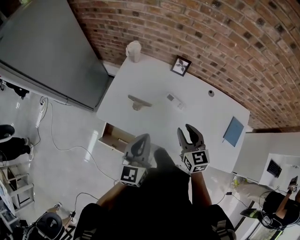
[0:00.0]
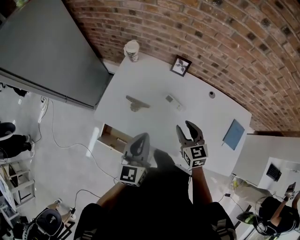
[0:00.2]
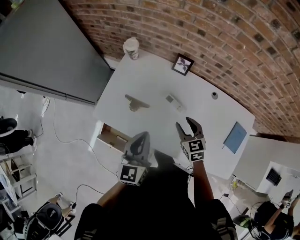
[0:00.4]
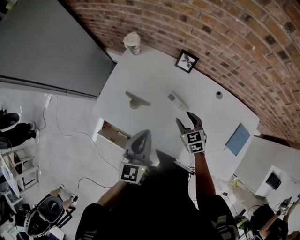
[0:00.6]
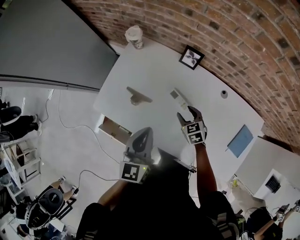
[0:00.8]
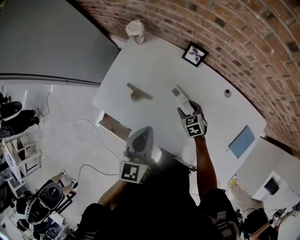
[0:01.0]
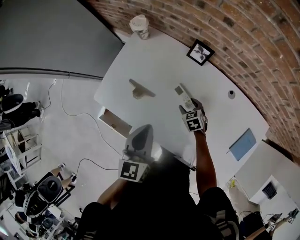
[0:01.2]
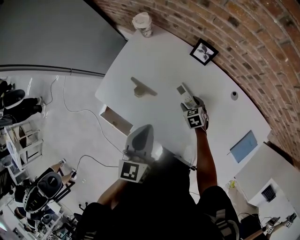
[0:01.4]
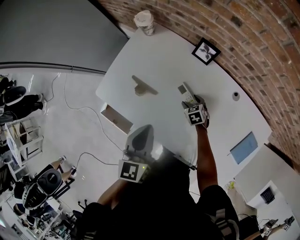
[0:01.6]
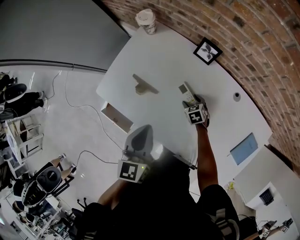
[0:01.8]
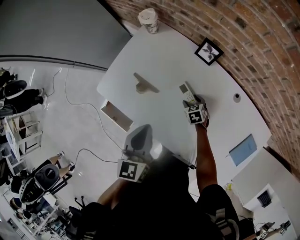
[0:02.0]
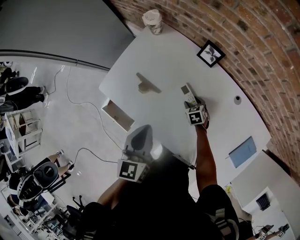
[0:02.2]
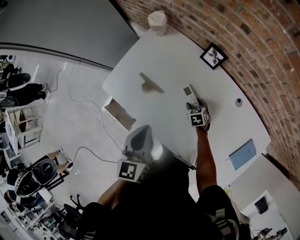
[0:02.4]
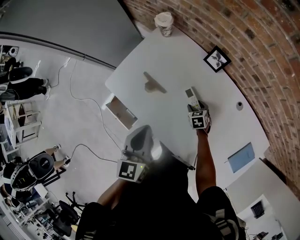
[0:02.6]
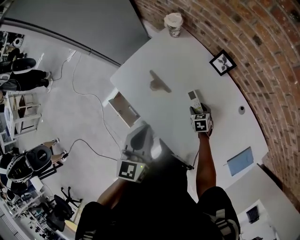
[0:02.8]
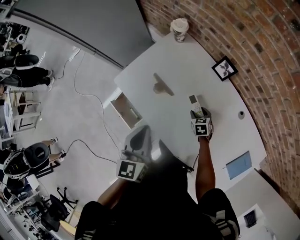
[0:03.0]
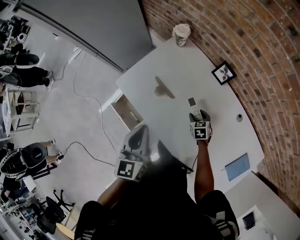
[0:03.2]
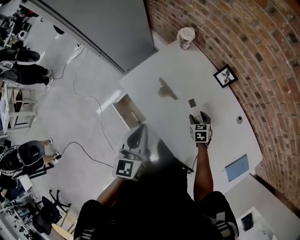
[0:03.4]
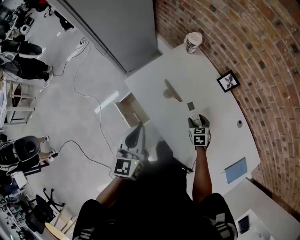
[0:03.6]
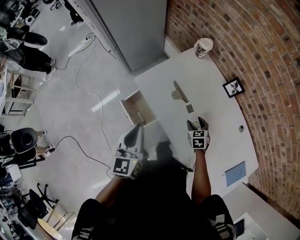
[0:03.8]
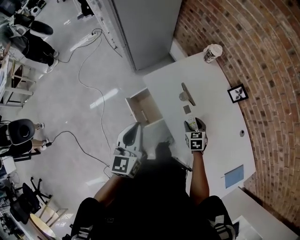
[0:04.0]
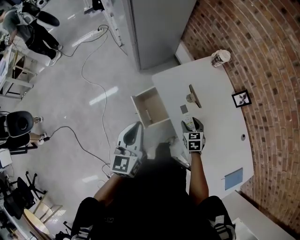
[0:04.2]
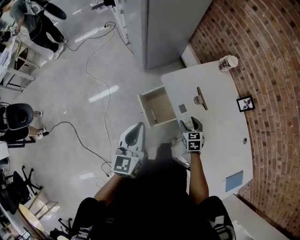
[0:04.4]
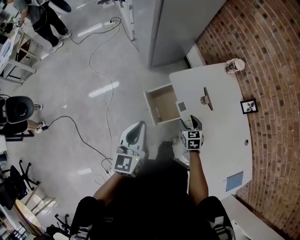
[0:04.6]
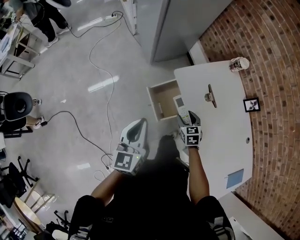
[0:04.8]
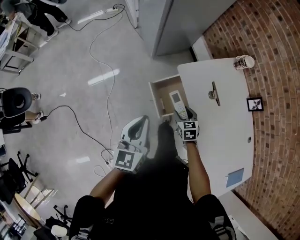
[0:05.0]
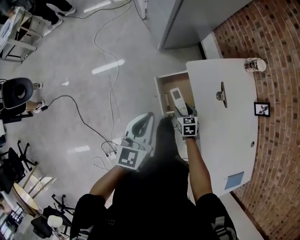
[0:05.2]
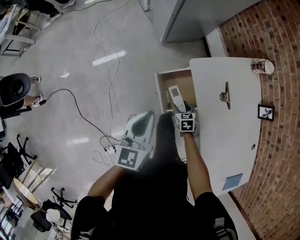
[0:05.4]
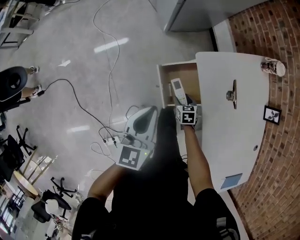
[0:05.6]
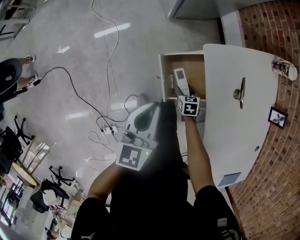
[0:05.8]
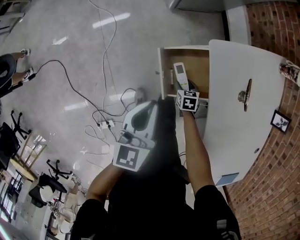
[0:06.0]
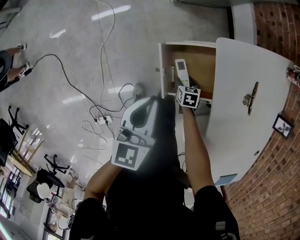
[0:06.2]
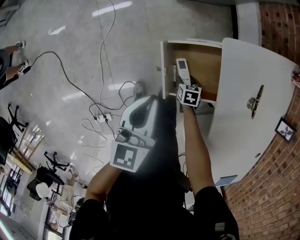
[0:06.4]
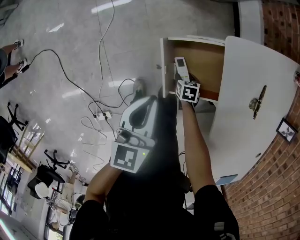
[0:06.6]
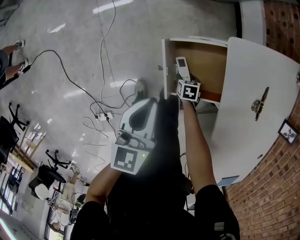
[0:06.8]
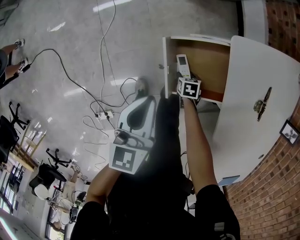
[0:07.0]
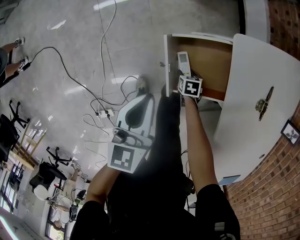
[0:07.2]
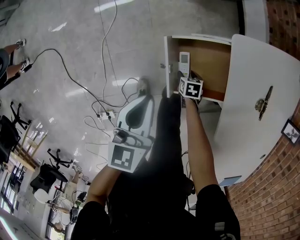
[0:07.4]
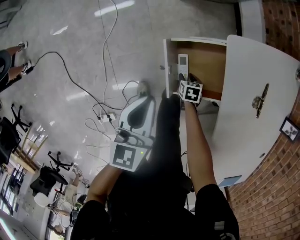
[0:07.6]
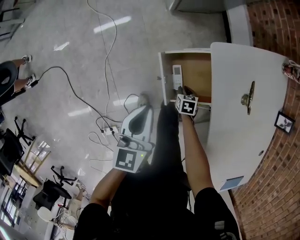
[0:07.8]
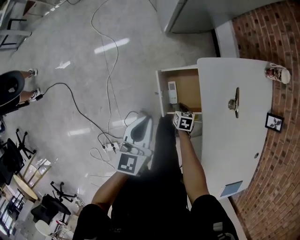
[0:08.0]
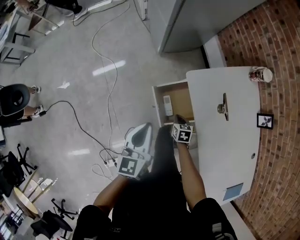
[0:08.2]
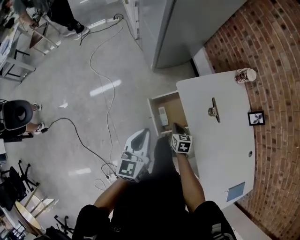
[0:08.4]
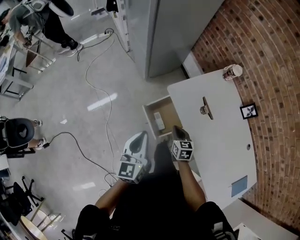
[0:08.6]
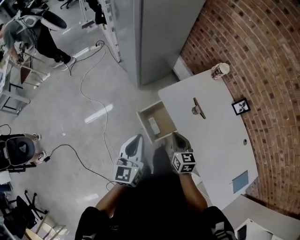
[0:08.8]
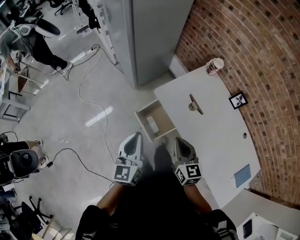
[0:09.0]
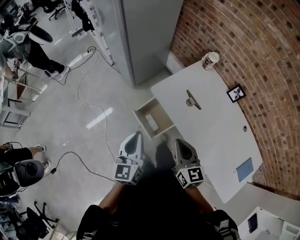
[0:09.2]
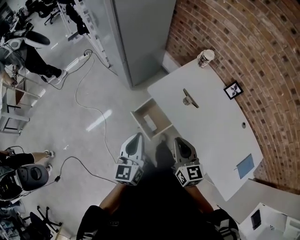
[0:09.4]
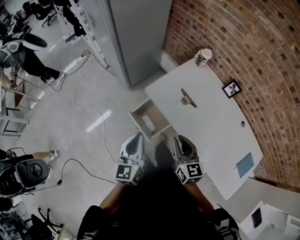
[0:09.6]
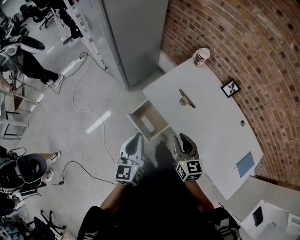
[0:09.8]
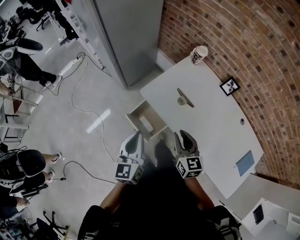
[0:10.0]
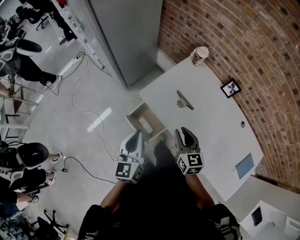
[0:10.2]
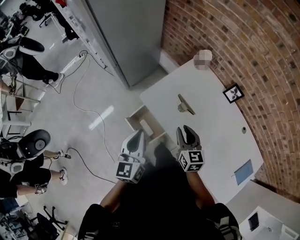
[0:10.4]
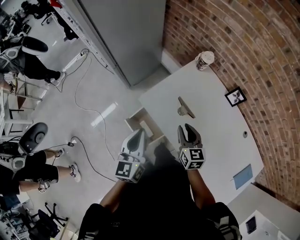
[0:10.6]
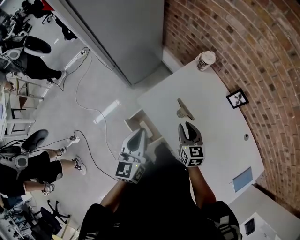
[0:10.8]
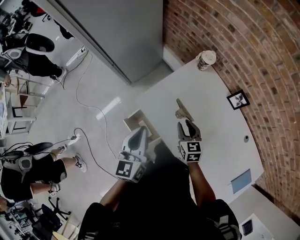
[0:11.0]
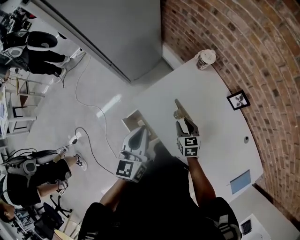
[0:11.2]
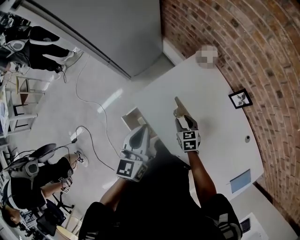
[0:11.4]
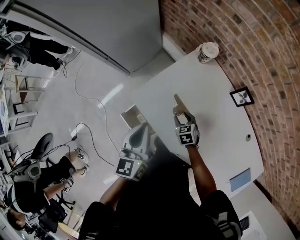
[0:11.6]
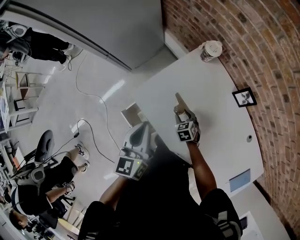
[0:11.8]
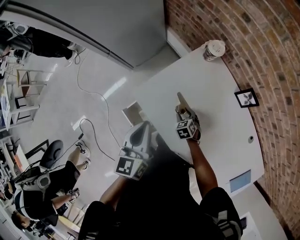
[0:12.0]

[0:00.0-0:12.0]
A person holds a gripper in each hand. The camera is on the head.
0:00.0 to 0:01.6: The right gripper is displaced downward and forward by approximately 35 cm, tips its fingers downward by some 40 degrees, and opens, while the left gripper is displaced forward, to the right and downward by roughly 10 cm.
0:01.6 to 0:03.0: The left gripper moves to the left, roughly 5 cm.
0:03.0 to 0:04.4: The two grippers go roughly 30 cm to the left. The right gripper turns by about 20 degrees, while the left gripper changes its angle by roughly 20 degrees.
0:04.4 to 0:06.0: The left gripper shifts roughly 20 cm downward. Meanwhile the right gripper moves downward, about 30 cm, and turns by some 20 degrees.
0:06.0 to 0:07.6: Both grippers travel together downward, roughly 5 cm.
0:07.6 to 0:09.0: The right gripper travels upward by some 60 cm, angles its fingers upward, by roughly 50 degrees, and closes; the left gripper travels upward by approximately 30 cm, and rotates some 30 degrees.
0:09.0 to 0:10.4: Both grippers move to the right and forward, about 15 cm.
0:10.4 to 0:12.0: The right gripper moves downward and forward, approximately 30 cm, angles its fingers downward, by approximately 40 degrees, and opens, while the left gripper shifts about 15 cm forward and to the right.

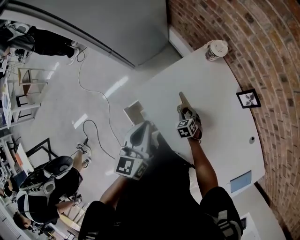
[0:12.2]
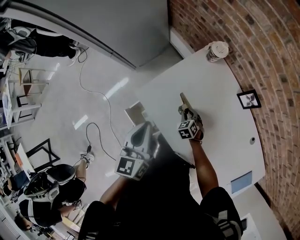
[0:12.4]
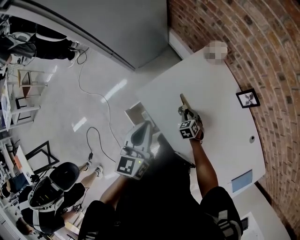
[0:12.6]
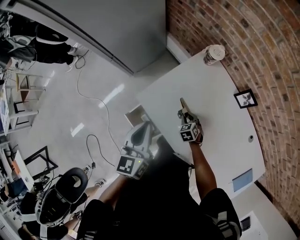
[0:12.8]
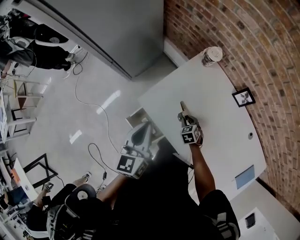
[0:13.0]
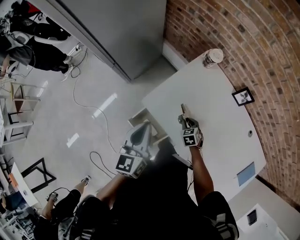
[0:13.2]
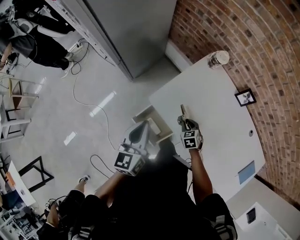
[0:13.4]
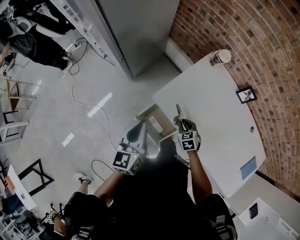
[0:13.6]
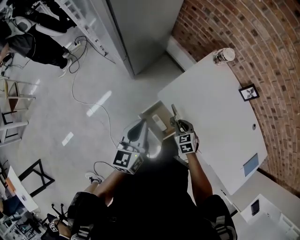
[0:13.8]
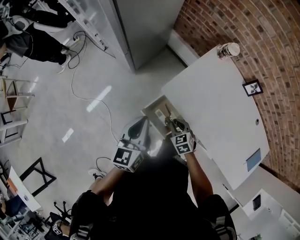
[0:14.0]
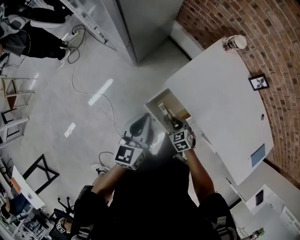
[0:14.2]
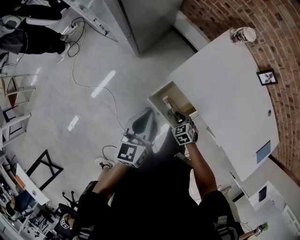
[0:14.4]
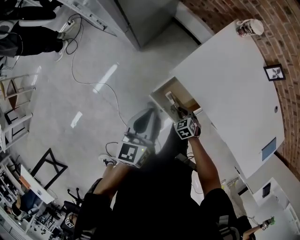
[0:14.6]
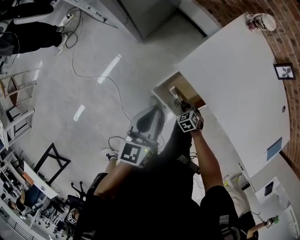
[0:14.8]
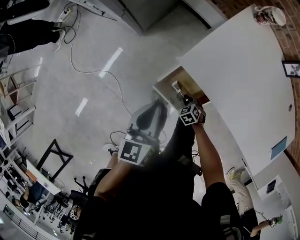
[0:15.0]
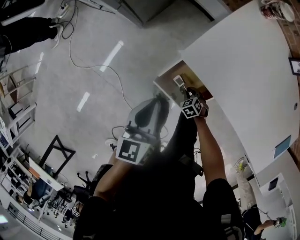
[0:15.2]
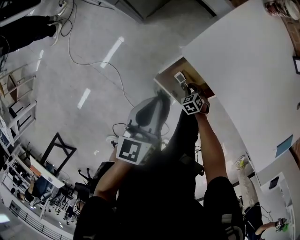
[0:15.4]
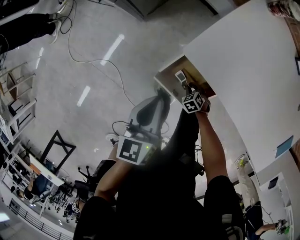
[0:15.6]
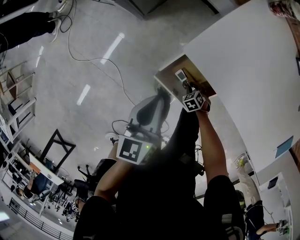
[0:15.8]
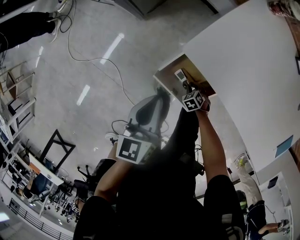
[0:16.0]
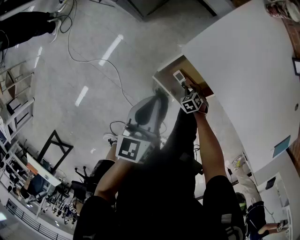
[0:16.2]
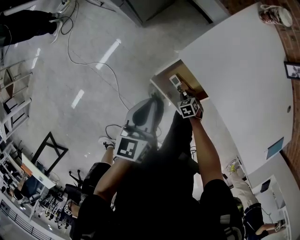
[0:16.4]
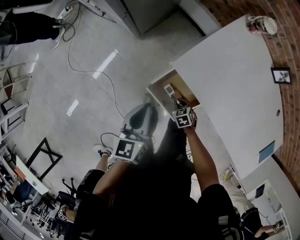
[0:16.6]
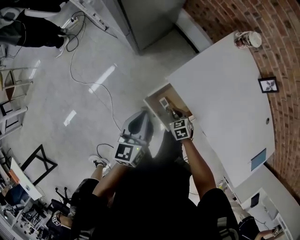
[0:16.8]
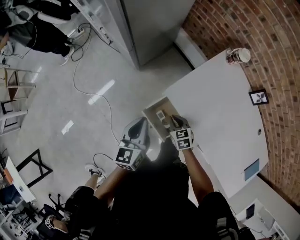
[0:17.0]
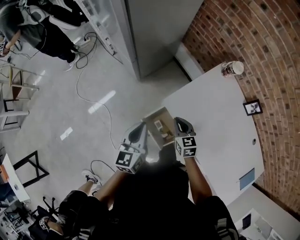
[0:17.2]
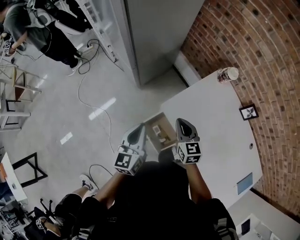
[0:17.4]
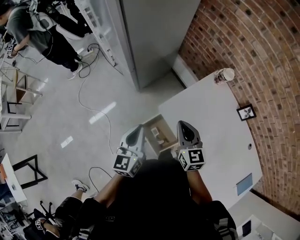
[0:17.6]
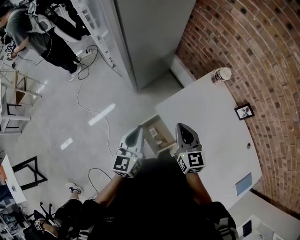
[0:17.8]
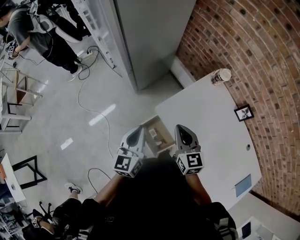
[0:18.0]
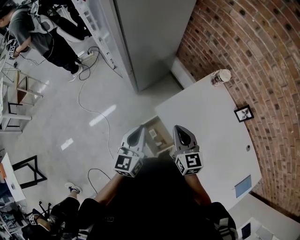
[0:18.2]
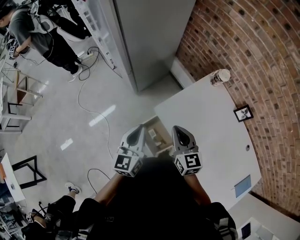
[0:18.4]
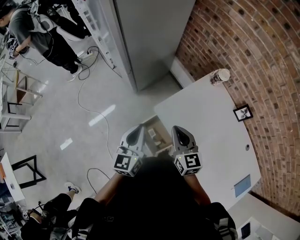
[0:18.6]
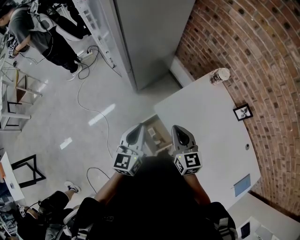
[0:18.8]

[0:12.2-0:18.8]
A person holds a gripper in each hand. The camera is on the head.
0:12.2 to 0:13.8: The right gripper moves to the left, upward and backward, some 25 cm; the left gripper travels to the left by approximately 20 cm.
0:13.8 to 0:15.4: The left gripper is displaced downward by some 20 cm. The right gripper is displaced downward by roughly 35 cm, and swivels roughly 20 degrees.
0:15.4 to 0:17.2: The right gripper is displaced upward by some 40 cm, and tilts its fingers roughly 40 degrees upward. Meanwhile the left gripper shifts about 15 cm upward.
0:17.2 to 0:18.8: The left gripper goes approximately 5 cm upward, while the right gripper heads upward, covering some 15 cm.

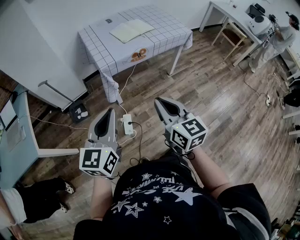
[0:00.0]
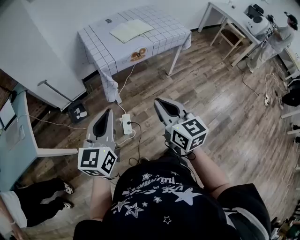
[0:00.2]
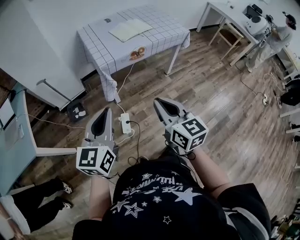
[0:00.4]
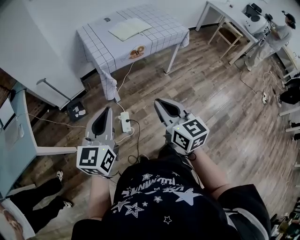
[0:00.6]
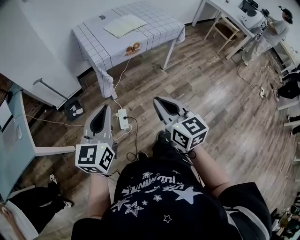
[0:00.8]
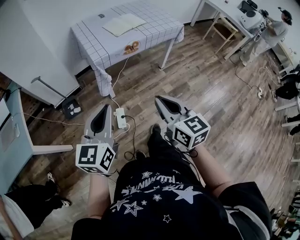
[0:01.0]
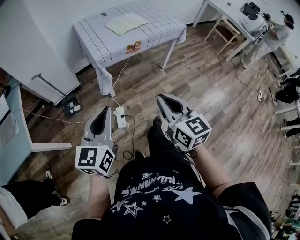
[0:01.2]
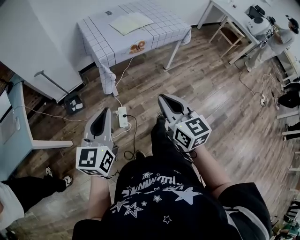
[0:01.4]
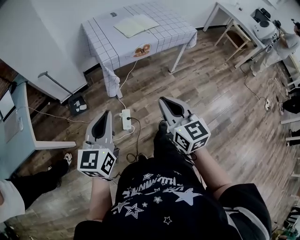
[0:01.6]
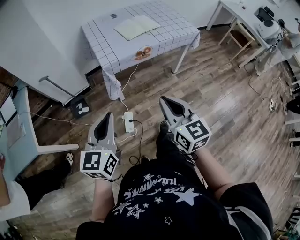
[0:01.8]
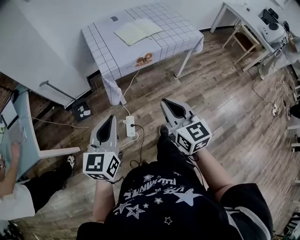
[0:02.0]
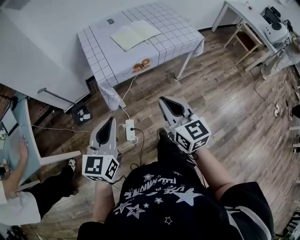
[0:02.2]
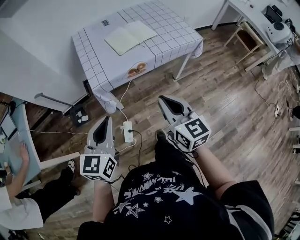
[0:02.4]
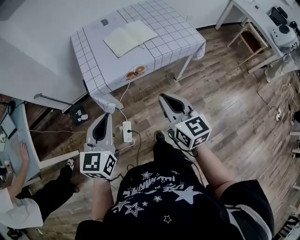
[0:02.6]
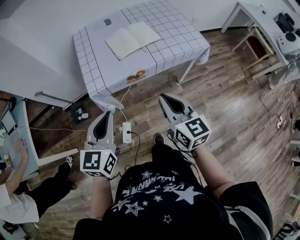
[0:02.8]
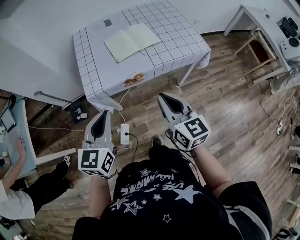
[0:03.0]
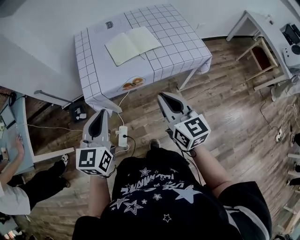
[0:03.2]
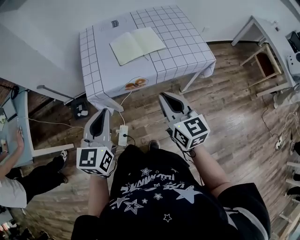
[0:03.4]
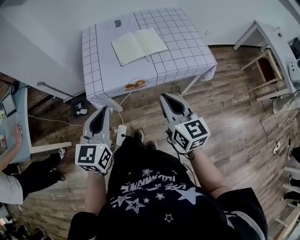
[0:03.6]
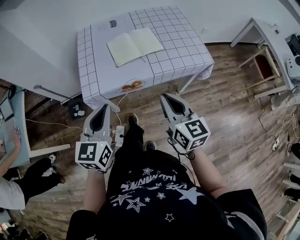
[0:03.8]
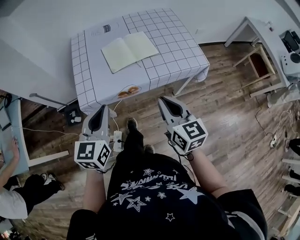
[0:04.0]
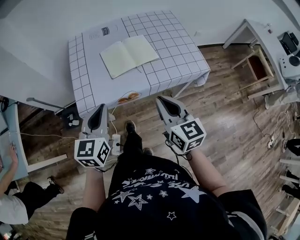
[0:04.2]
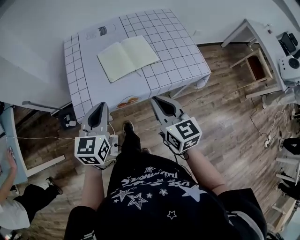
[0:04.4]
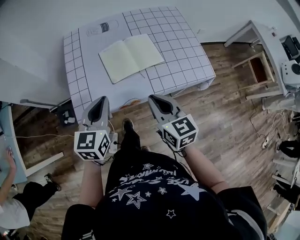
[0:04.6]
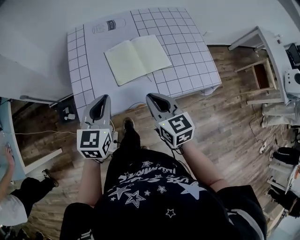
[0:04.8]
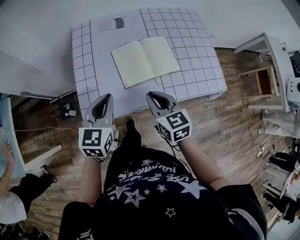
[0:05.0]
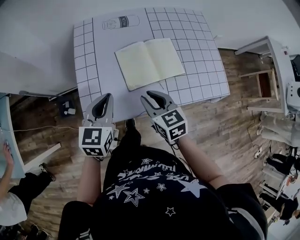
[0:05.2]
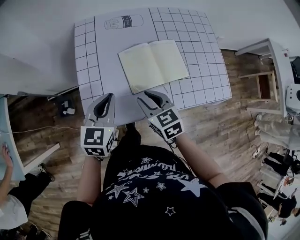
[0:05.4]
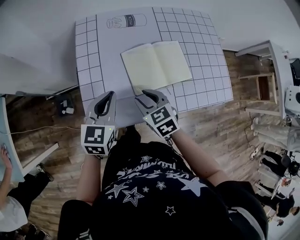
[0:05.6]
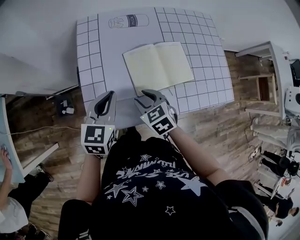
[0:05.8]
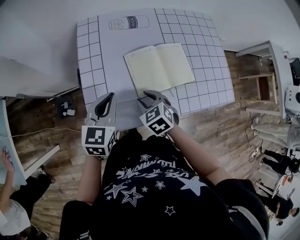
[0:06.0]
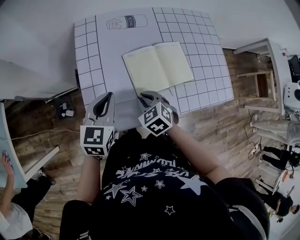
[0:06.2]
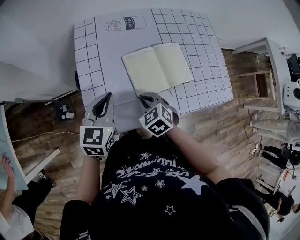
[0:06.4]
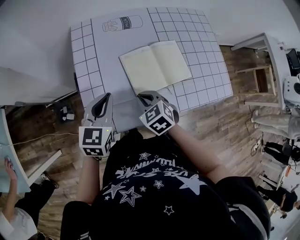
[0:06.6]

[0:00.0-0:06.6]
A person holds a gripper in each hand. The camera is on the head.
0:00.0 to 0:01.6: The grippers move only a little.
0:01.6 to 0:03.2: The two grippers go approximately 35 cm forward and to the right.
0:03.2 to 0:05.0: The right gripper travels forward and downward by approximately 25 cm, and turns by approximately 20 degrees. Meanwhile the left gripper travels forward by some 25 cm.
0:05.0 to 0:06.6: The left gripper moves forward, approximately 5 cm. Meanwhile the right gripper shifts roughly 15 cm downward, to the left and forward, swivels about 30 degrees, and opens and closes again.
